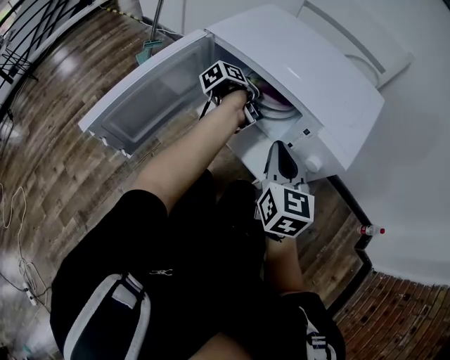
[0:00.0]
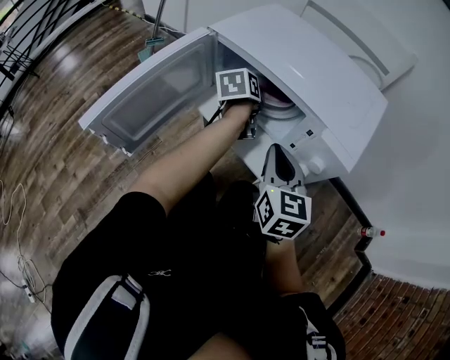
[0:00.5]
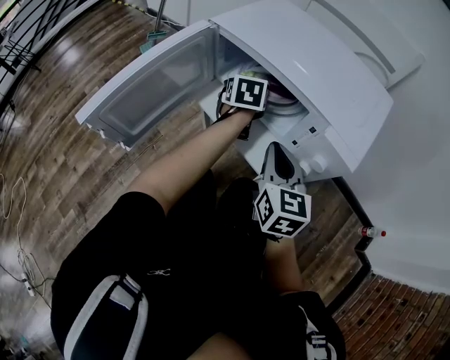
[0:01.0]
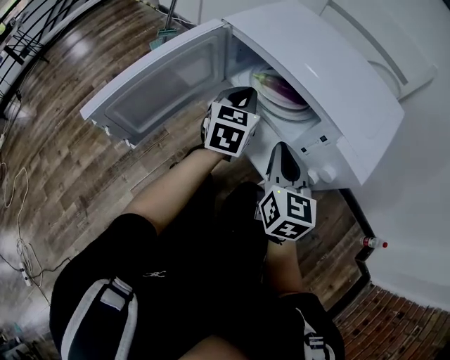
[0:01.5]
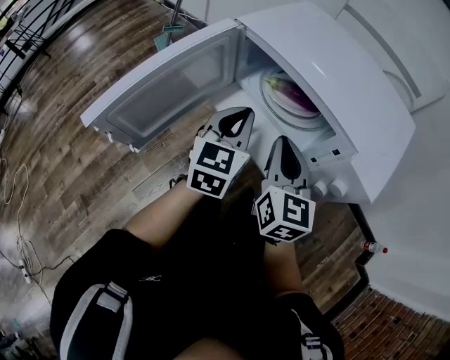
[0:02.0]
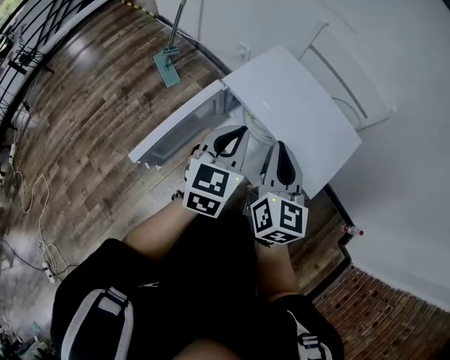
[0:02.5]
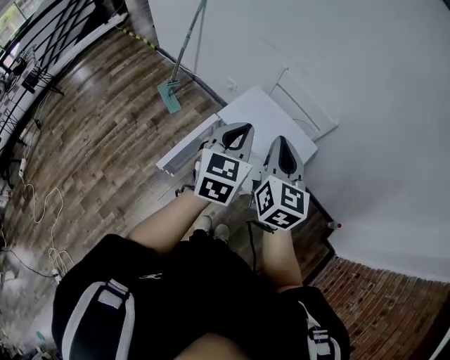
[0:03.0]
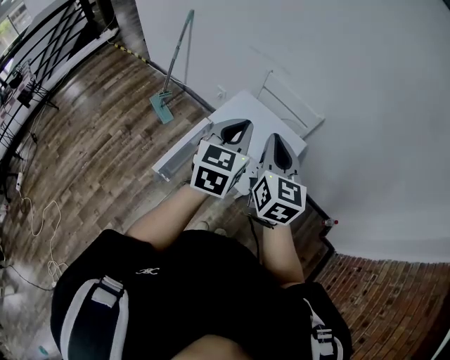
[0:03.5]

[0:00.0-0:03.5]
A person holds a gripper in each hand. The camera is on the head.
0:00.0 to 0:02.0: The right gripper moves about 5 cm.
0:02.0 to 0:03.5: The right gripper moves upward, some 50 cm.

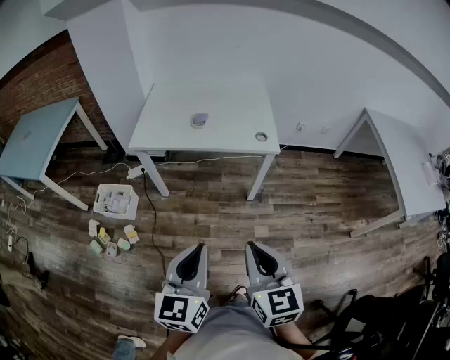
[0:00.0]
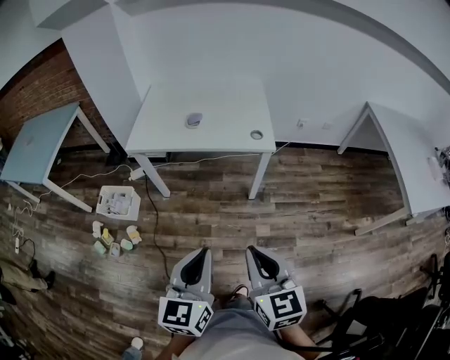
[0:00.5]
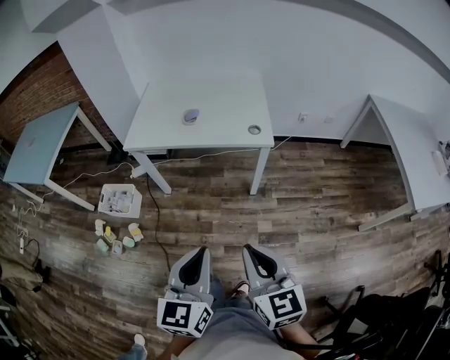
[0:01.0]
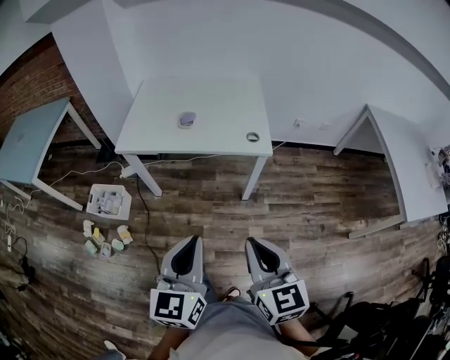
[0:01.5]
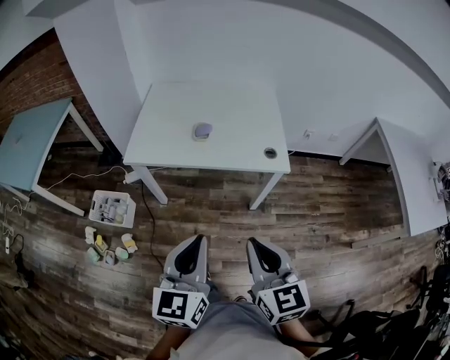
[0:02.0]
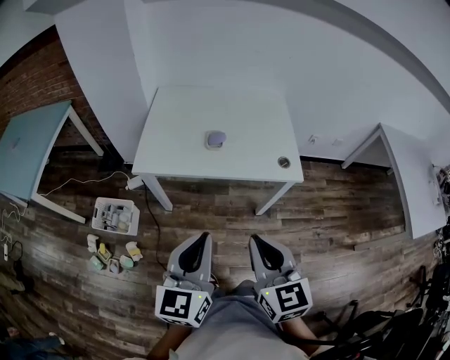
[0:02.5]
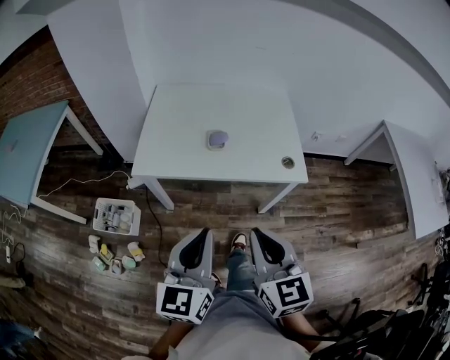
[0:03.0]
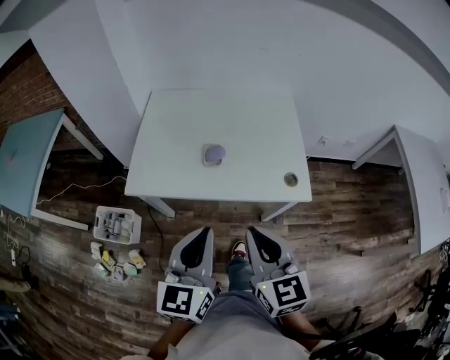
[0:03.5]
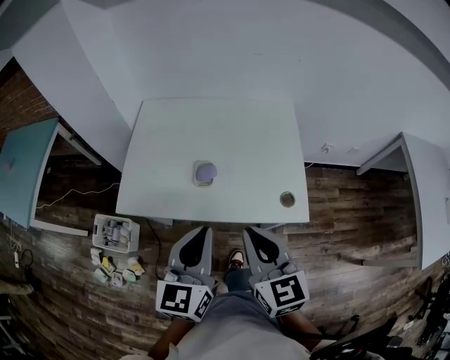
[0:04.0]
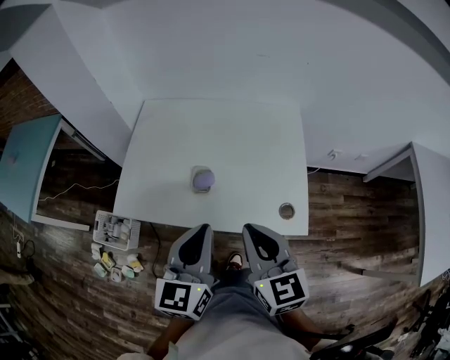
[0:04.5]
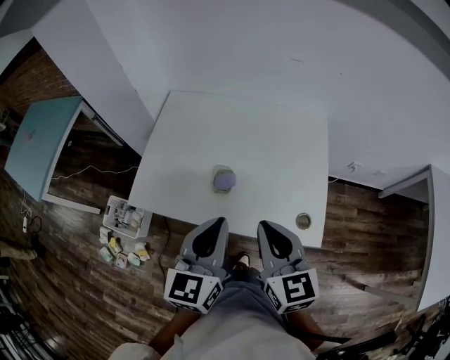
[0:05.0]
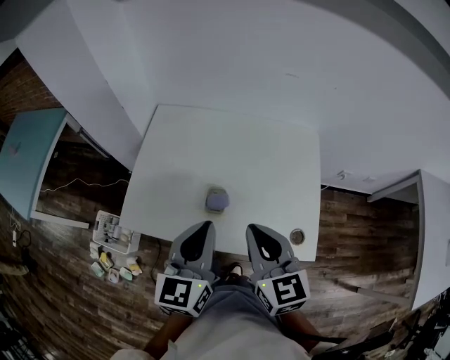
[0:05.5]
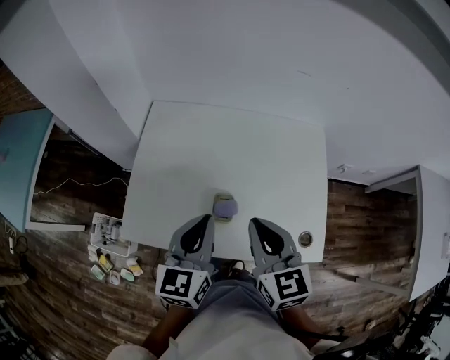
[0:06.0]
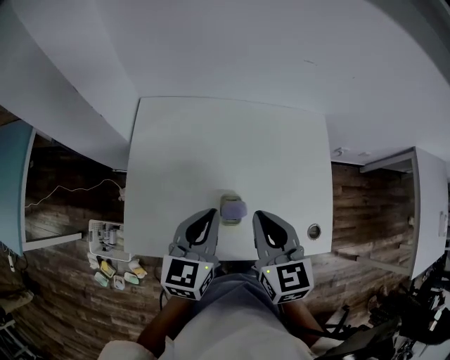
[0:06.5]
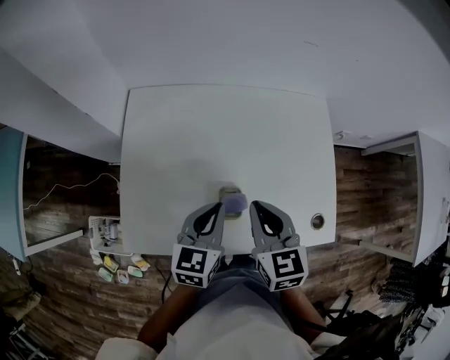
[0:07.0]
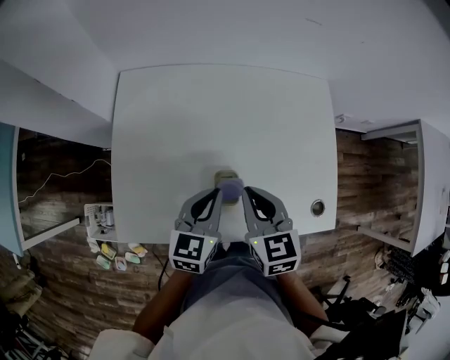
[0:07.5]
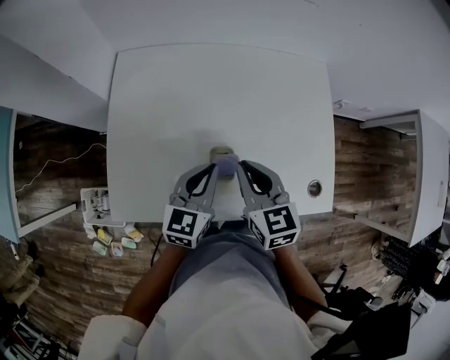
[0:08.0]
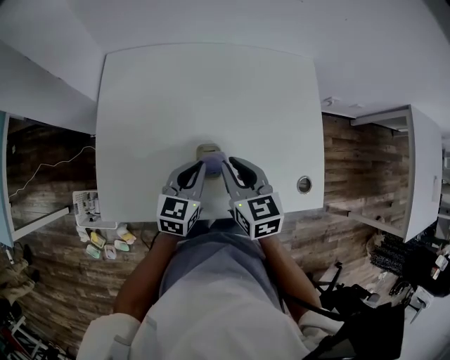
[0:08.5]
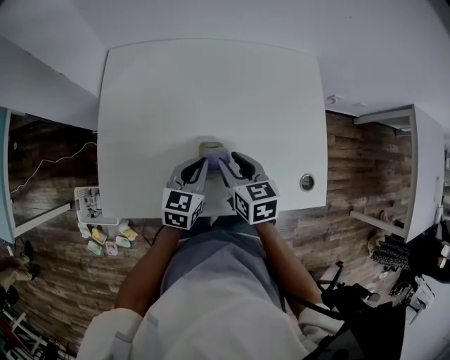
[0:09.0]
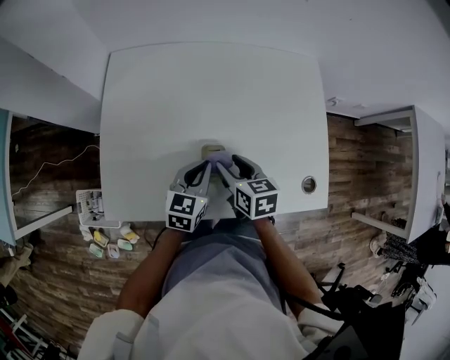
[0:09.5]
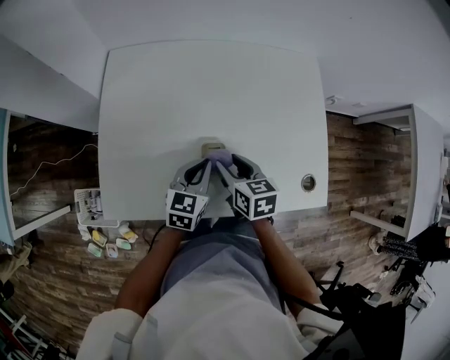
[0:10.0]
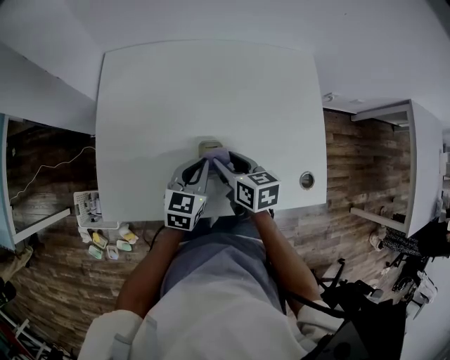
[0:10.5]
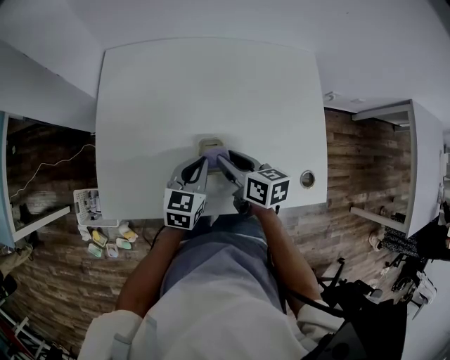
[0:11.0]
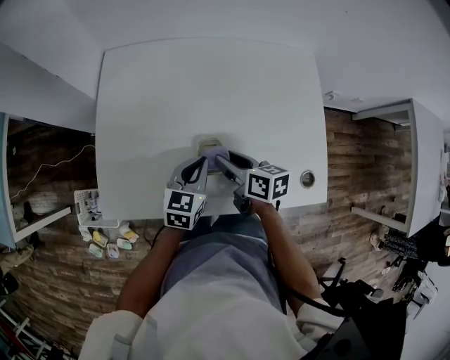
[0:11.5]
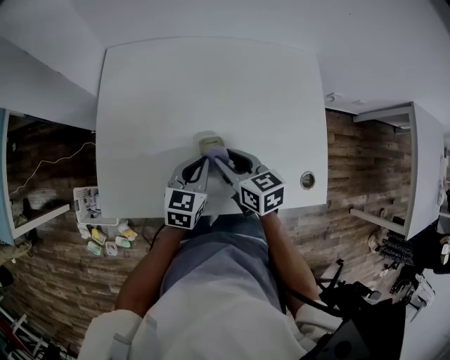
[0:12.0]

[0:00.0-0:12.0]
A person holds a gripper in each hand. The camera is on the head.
0:00.0 to 0:02.0: Both grippers travel together forward, some 15 cm.
0:02.0 to 0:04.0: Both grippers travel together forward, roughly 30 cm.
0:04.0 to 0:06.0: The two grippers go about 20 cm forward.
0:06.0 to 0:08.0: Both grippers travel together downward, about 15 cm.
0:08.0 to 0:10.0: The grippers both shift downward by some 10 cm. The right gripper turns by some 20 degrees, and opens.

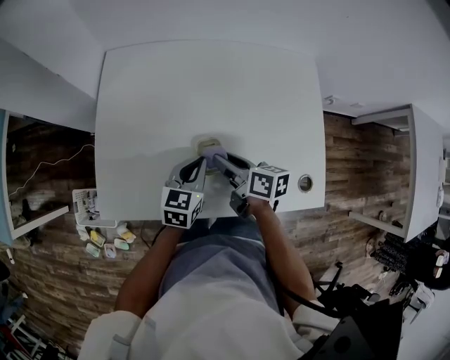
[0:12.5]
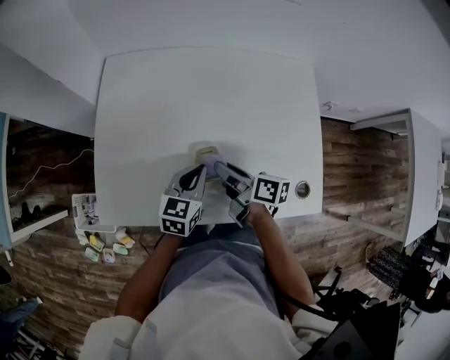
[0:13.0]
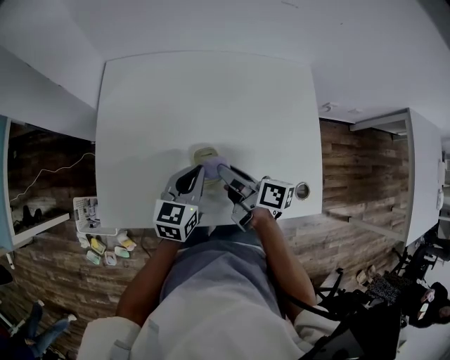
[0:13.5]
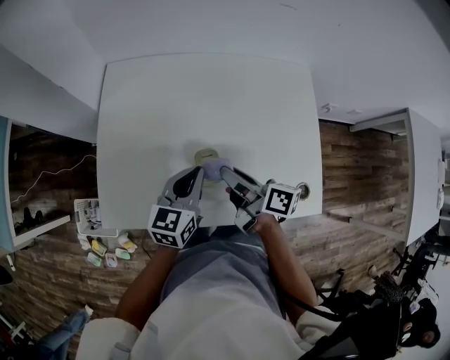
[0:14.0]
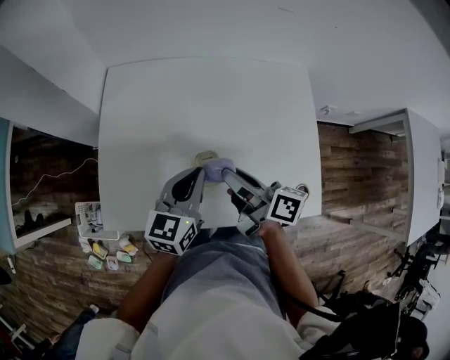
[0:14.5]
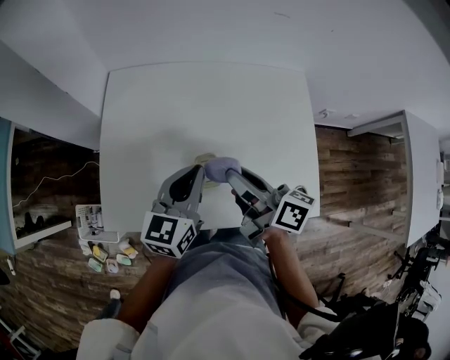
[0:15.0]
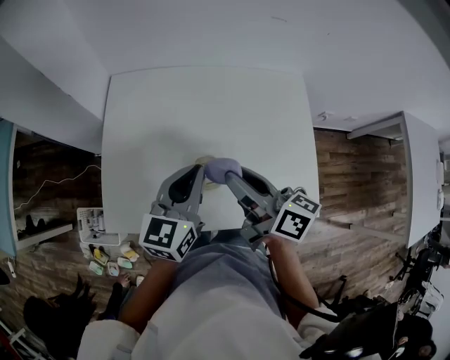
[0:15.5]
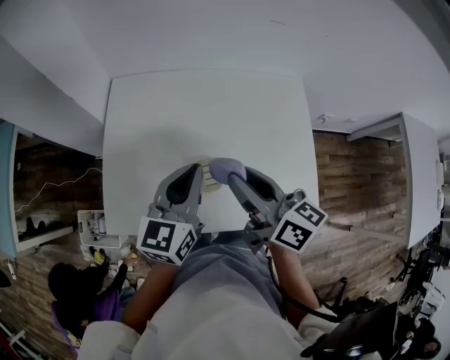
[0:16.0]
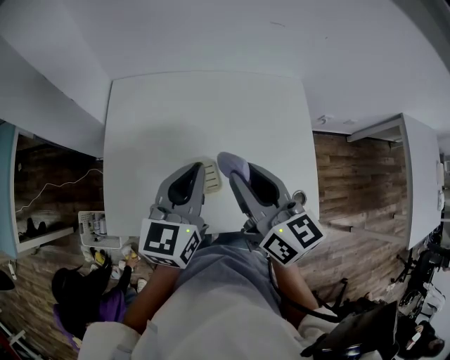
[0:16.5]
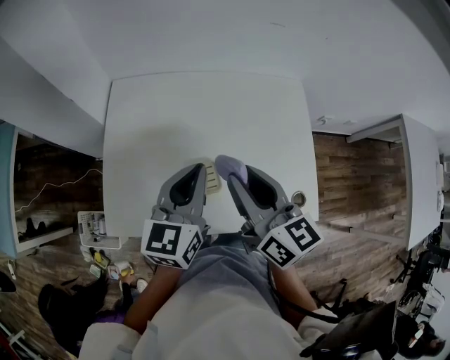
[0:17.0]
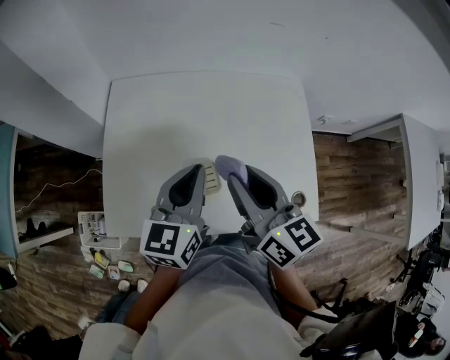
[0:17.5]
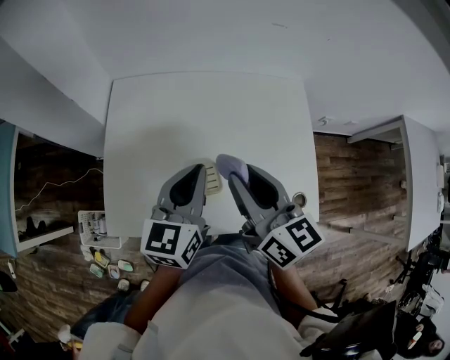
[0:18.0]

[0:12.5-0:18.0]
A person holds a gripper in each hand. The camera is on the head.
0:12.5 to 0:14.5: Both grippers travel together upward, roughly 10 cm.
0:14.5 to 0:16.0: Both grippers move upward, about 10 cm. The right gripper rotates some 20 degrees.
0:16.0 to 0:18.0: There are only small adjustments of the grippers.

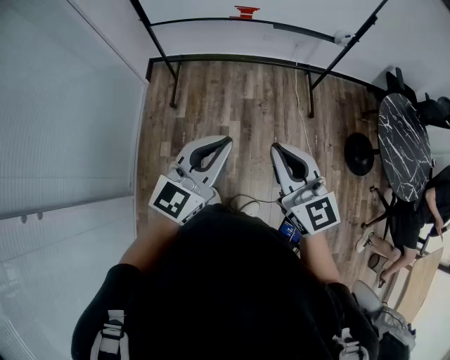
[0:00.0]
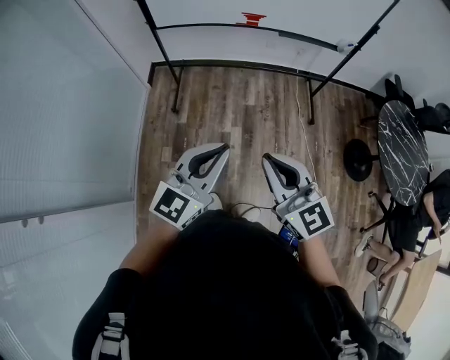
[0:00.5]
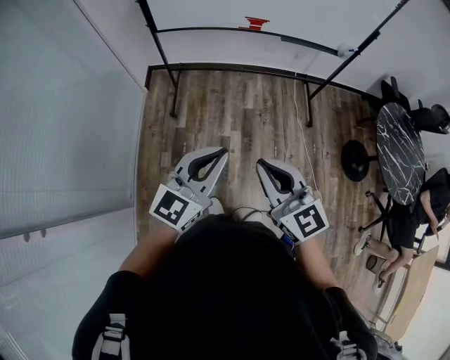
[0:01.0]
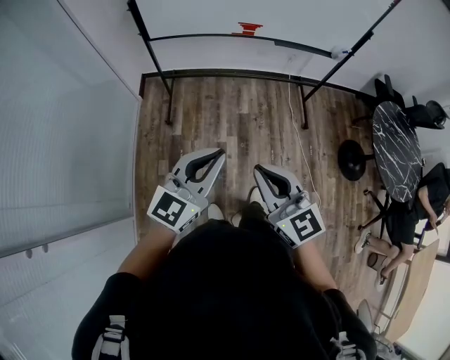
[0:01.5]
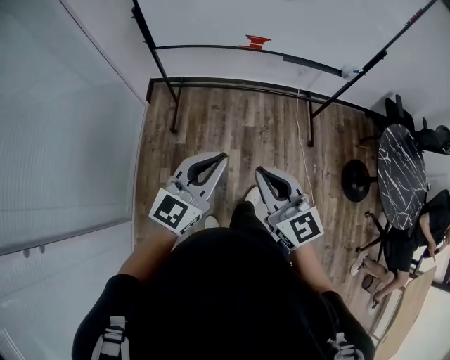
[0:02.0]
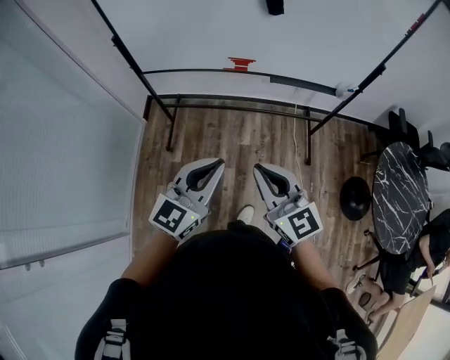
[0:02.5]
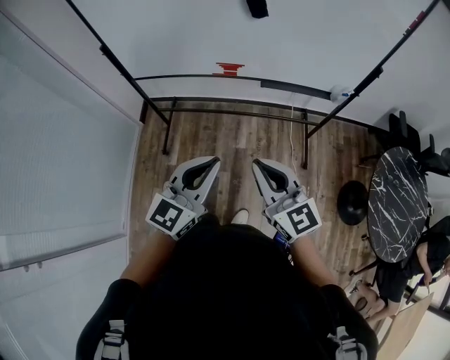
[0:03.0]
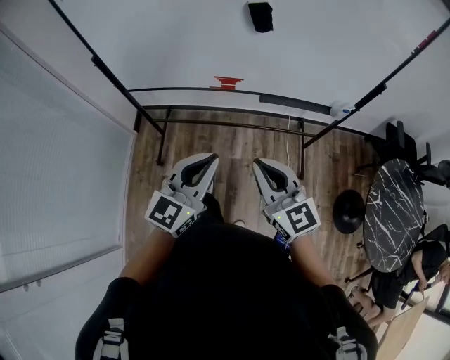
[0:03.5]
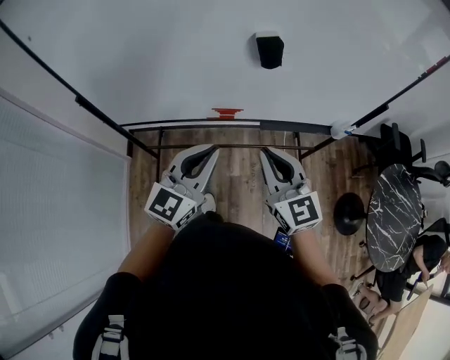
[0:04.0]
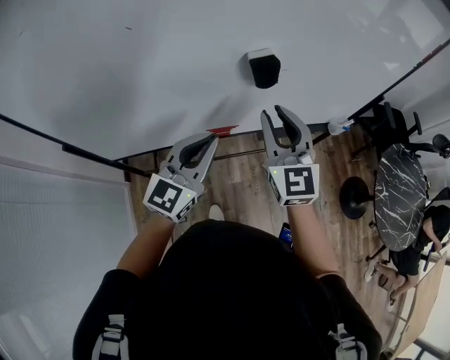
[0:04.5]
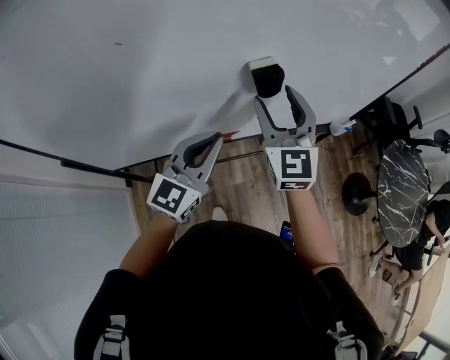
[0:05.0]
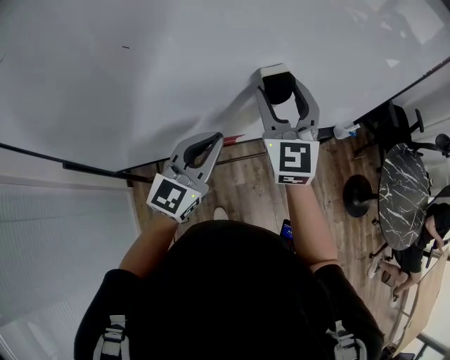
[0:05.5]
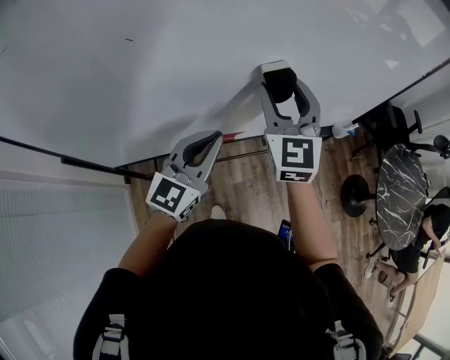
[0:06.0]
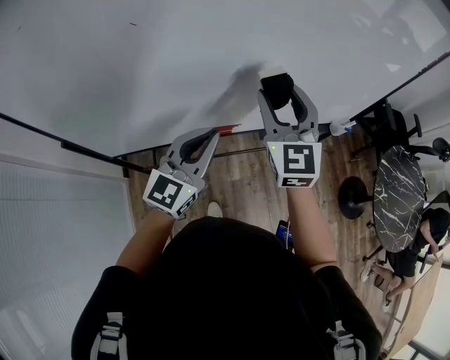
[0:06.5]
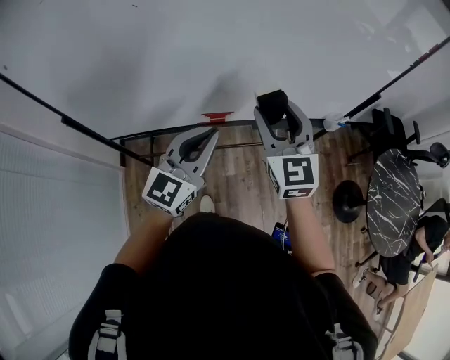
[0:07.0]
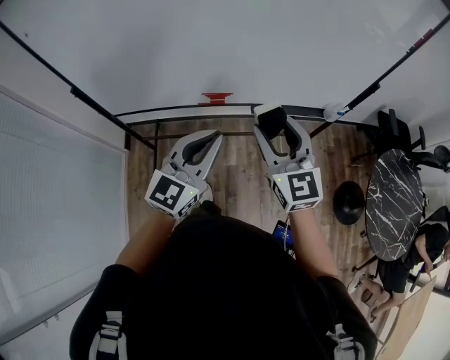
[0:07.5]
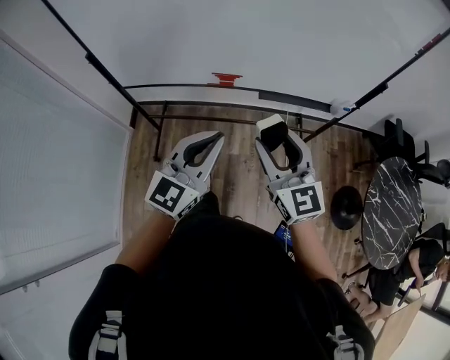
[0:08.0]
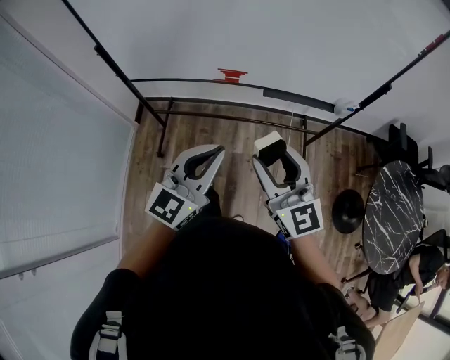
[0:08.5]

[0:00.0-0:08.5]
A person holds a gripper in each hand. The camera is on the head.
0:00.0 to 0:02.0: The grippers both shift forward and to the left by approximately 15 cm.
0:02.0 to 0:04.0: Both grippers are carried forward, about 50 cm.
0:04.0 to 0:06.5: The right gripper moves forward and upward, about 20 cm, rotates some 30 degrees, and opens its fingers; the left gripper moves forward and to the left, about 15 cm.
0:06.5 to 0:08.5: The right gripper goes about 35 cm backward, and rotates roughly 30 degrees. Meanwhile the left gripper is displaced backward and to the right by roughly 30 cm.
